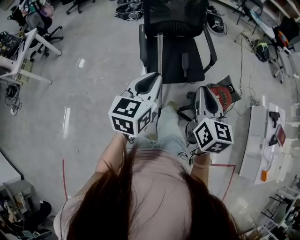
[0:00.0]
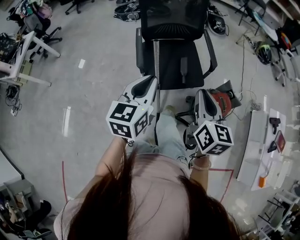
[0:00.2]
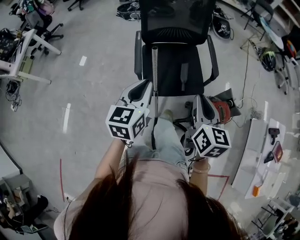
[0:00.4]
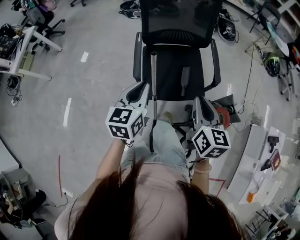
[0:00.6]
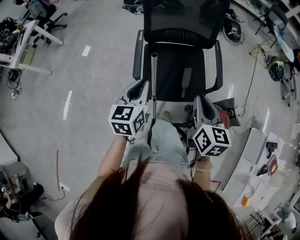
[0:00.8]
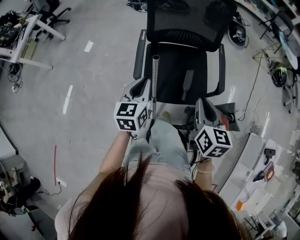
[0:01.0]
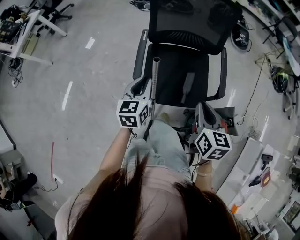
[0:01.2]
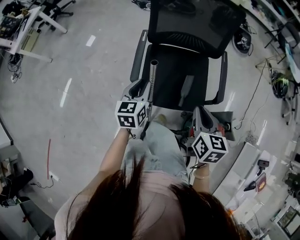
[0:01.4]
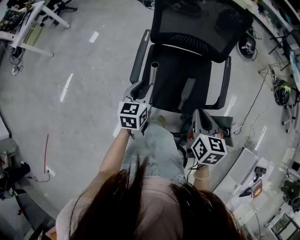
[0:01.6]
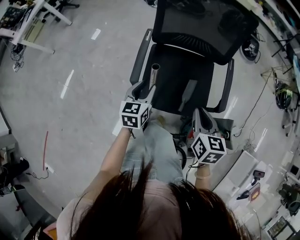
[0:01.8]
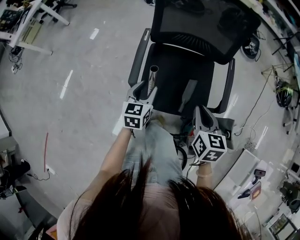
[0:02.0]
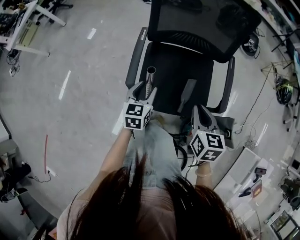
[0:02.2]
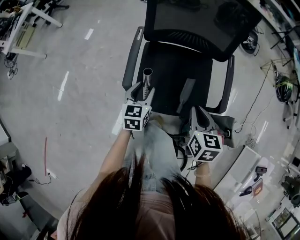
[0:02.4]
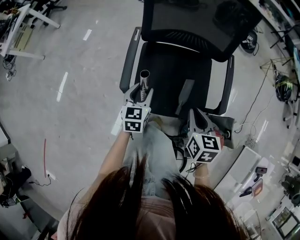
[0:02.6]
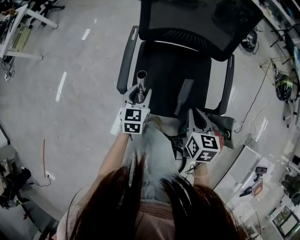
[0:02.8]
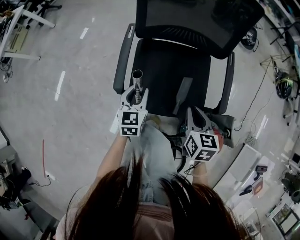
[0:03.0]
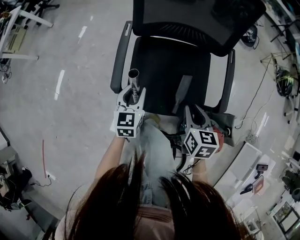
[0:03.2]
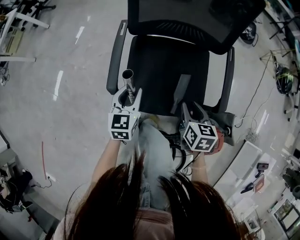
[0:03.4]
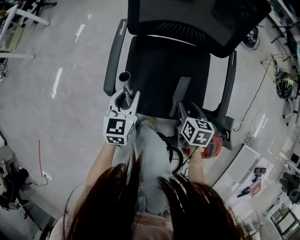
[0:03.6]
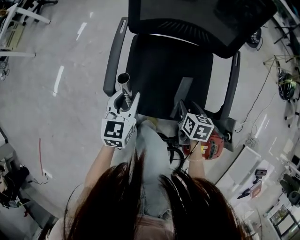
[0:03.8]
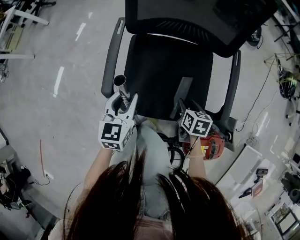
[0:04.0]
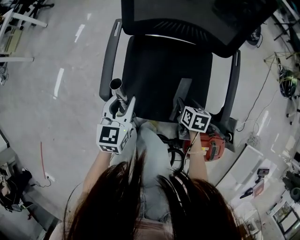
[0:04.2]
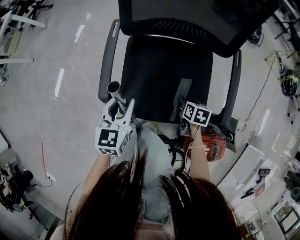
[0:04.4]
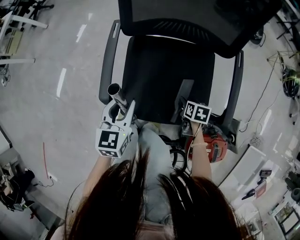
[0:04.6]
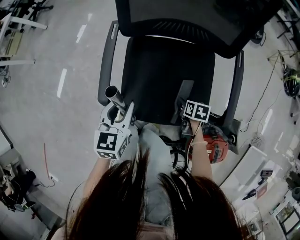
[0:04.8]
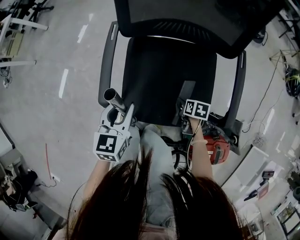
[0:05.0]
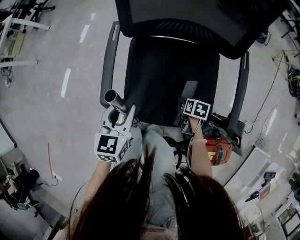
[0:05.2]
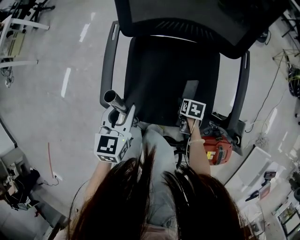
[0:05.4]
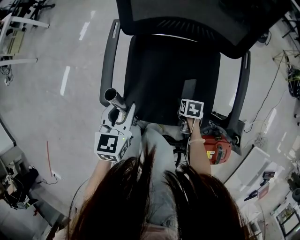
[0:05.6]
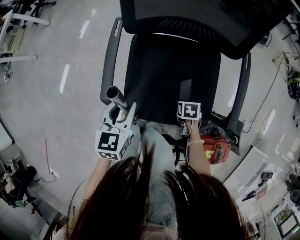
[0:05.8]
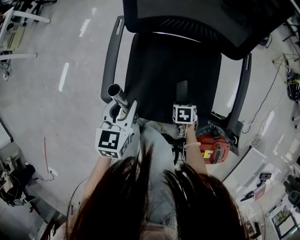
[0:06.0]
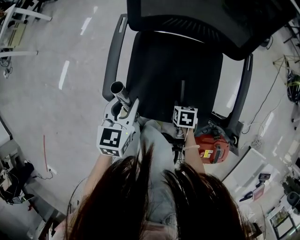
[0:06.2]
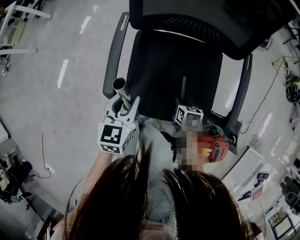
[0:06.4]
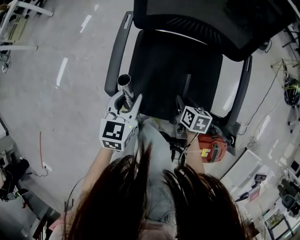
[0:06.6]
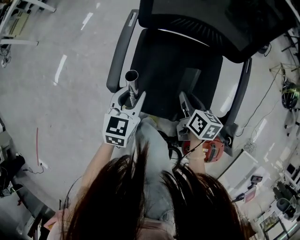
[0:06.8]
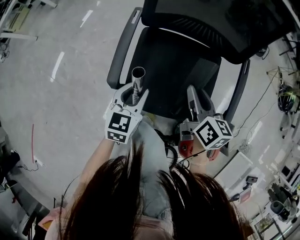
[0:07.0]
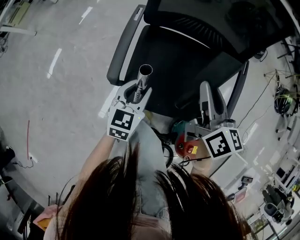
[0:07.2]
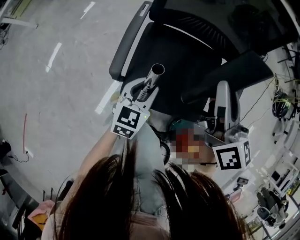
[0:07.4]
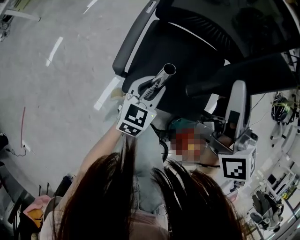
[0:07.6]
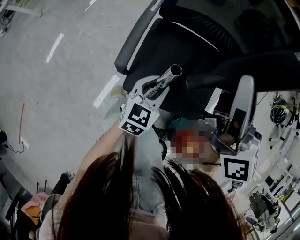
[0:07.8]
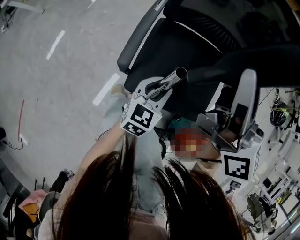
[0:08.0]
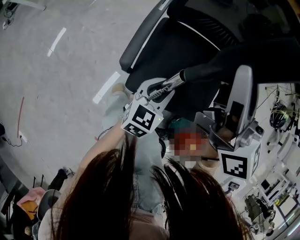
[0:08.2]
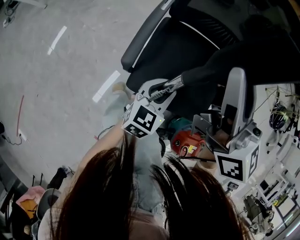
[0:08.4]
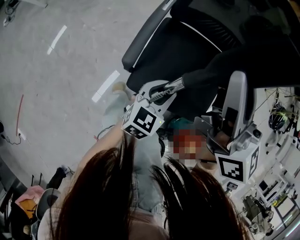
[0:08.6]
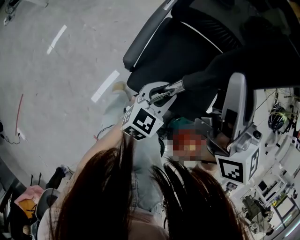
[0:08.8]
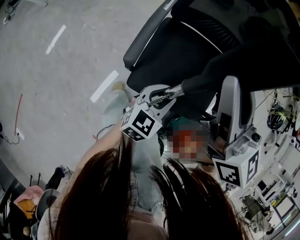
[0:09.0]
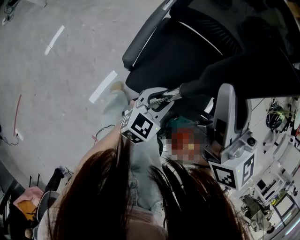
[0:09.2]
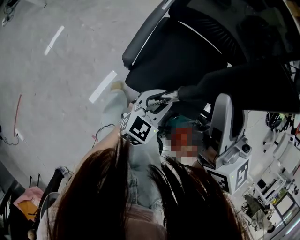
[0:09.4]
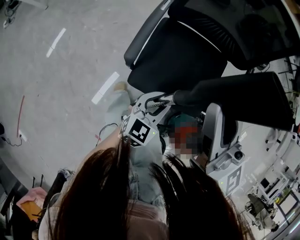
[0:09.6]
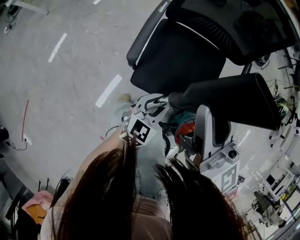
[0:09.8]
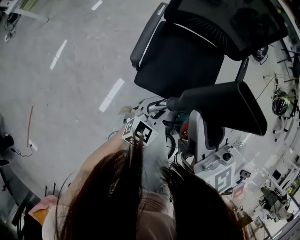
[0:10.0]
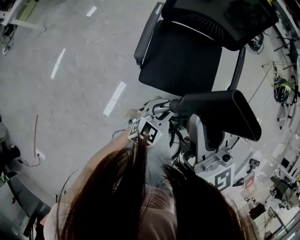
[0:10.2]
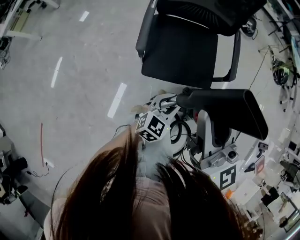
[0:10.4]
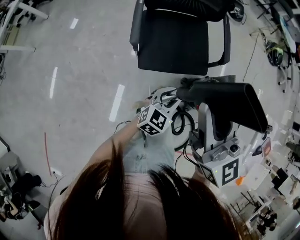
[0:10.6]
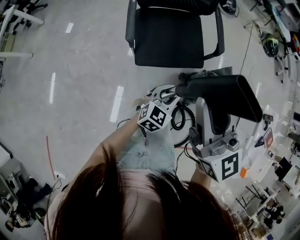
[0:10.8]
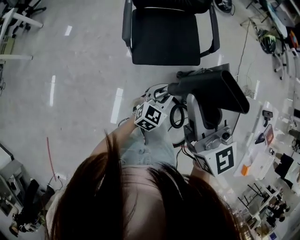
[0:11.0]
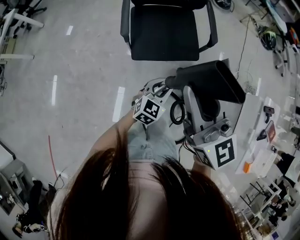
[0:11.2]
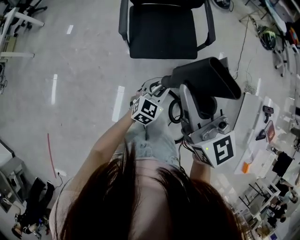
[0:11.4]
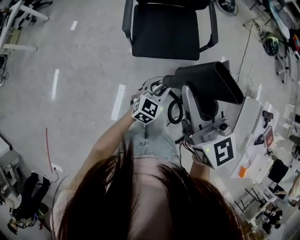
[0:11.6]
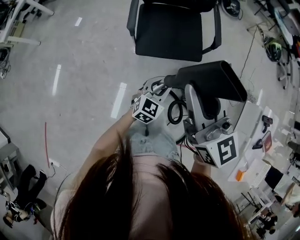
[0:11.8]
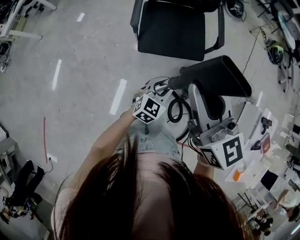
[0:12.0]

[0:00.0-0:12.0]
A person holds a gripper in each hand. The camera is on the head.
0:00.0 to 0:01.6: The grippers both shift forward and downward by approximately 40 cm. The right gripper changes its angle by some 30 degrees; the left gripper changes its angle by approximately 30 degrees, and opens up.
0:01.6 to 0:03.0: Both grippers move downward and forward, about 15 cm.
0:03.0 to 0:04.4: The right gripper is displaced downward by some 25 cm, turns by approximately 20 degrees, and opens its fingers.
0:04.4 to 0:06.0: The right gripper goes about 10 cm downward, and rotates approximately 20 degrees.
0:06.0 to 0:07.6: The left gripper shifts by approximately 5 cm; the right gripper heads upward, covering approximately 50 cm, tips its fingers upward by some 80 degrees, and closes.
0:07.6 to 0:09.0: The right gripper is displaced to the left by approximately 10 cm.
0:09.0 to 0:10.4: Both grippers travel together backward and upward, roughly 25 cm.
0:10.4 to 0:12.0: The left gripper travels backward by roughly 15 cm; the right gripper travels backward and to the right by roughly 20 cm.

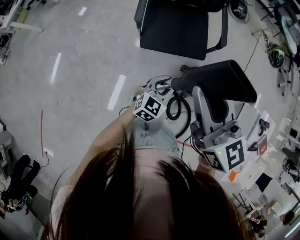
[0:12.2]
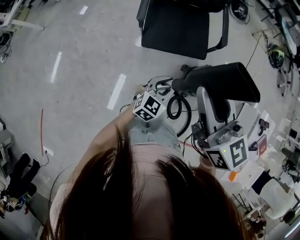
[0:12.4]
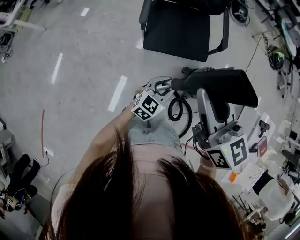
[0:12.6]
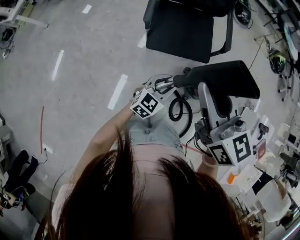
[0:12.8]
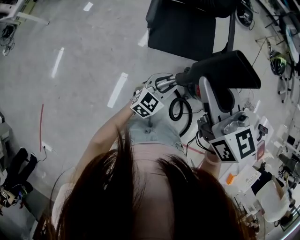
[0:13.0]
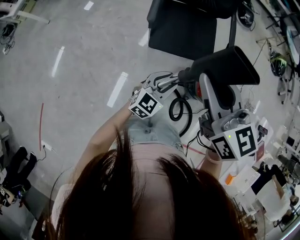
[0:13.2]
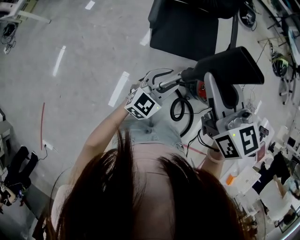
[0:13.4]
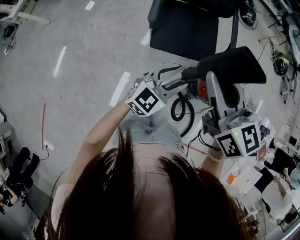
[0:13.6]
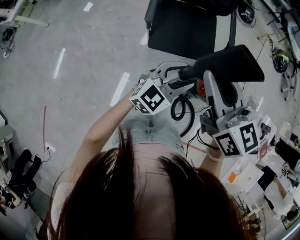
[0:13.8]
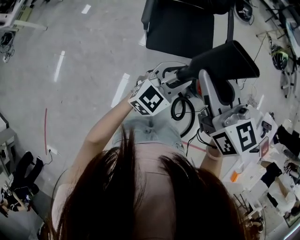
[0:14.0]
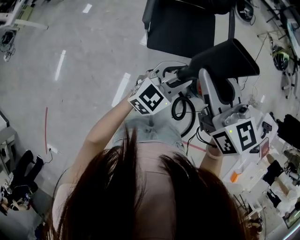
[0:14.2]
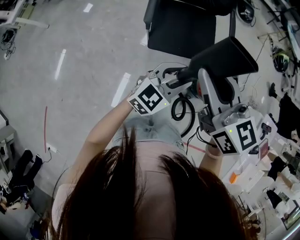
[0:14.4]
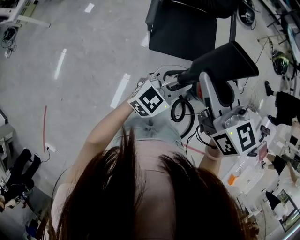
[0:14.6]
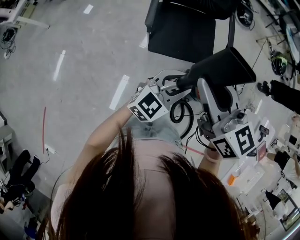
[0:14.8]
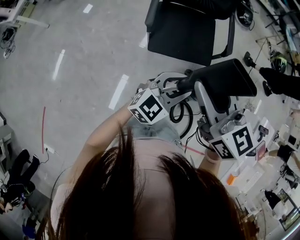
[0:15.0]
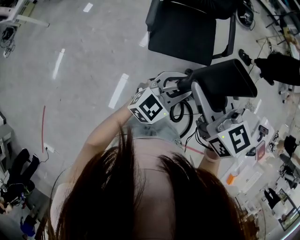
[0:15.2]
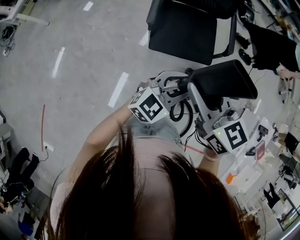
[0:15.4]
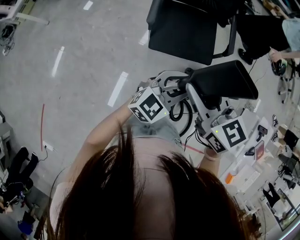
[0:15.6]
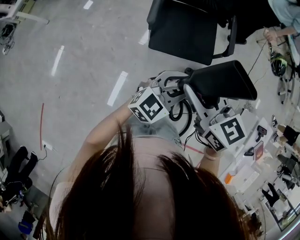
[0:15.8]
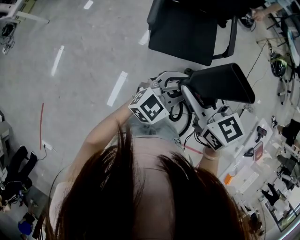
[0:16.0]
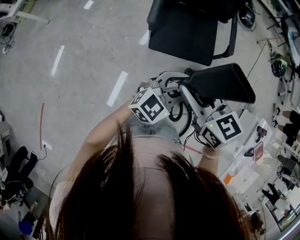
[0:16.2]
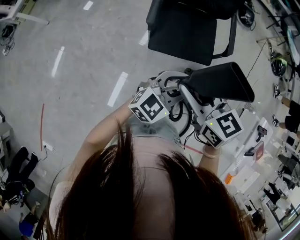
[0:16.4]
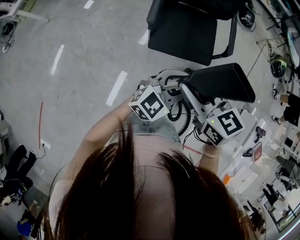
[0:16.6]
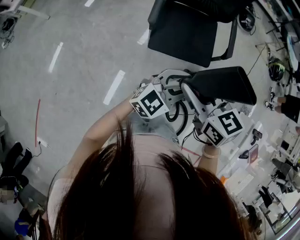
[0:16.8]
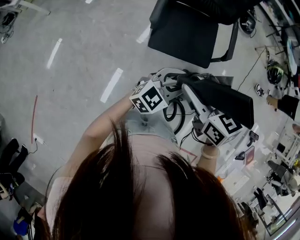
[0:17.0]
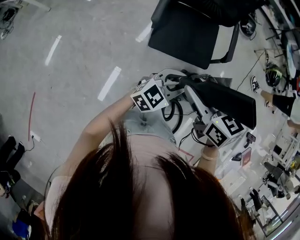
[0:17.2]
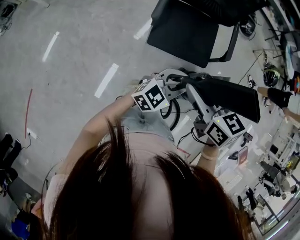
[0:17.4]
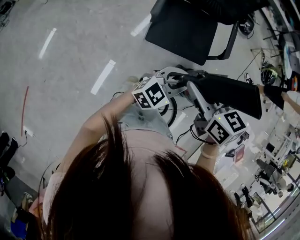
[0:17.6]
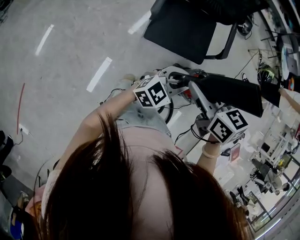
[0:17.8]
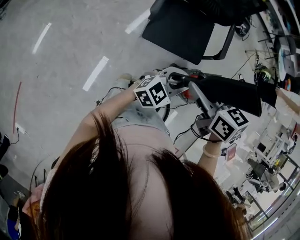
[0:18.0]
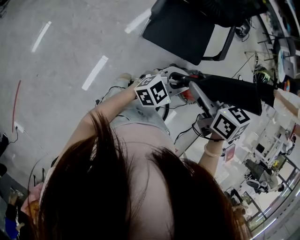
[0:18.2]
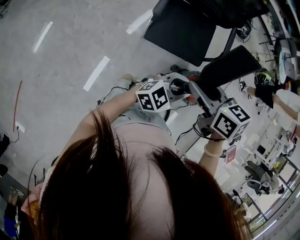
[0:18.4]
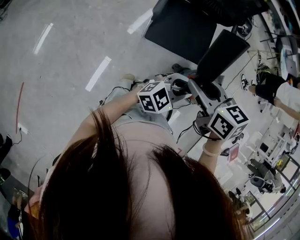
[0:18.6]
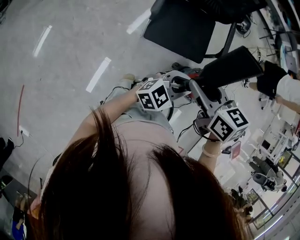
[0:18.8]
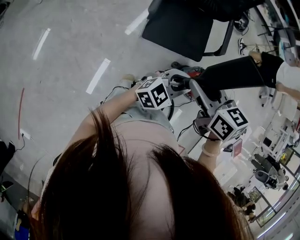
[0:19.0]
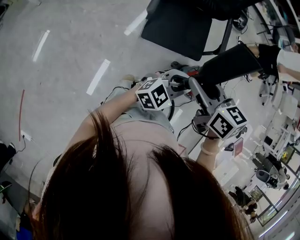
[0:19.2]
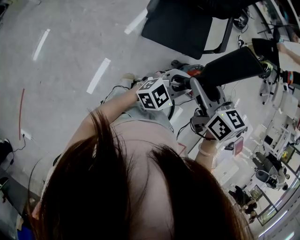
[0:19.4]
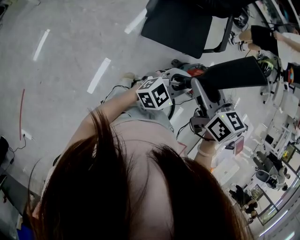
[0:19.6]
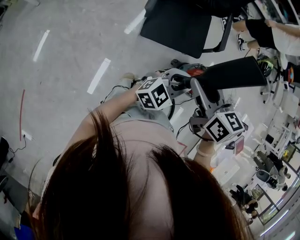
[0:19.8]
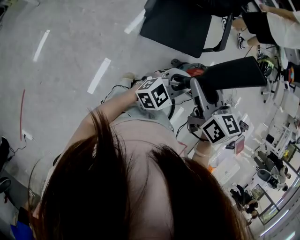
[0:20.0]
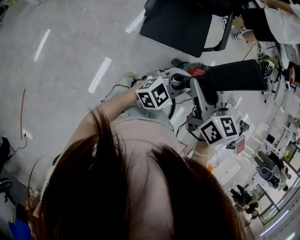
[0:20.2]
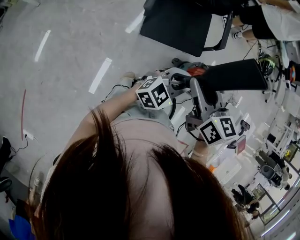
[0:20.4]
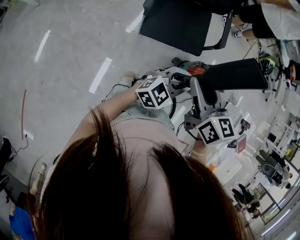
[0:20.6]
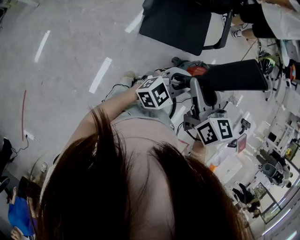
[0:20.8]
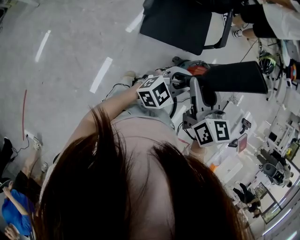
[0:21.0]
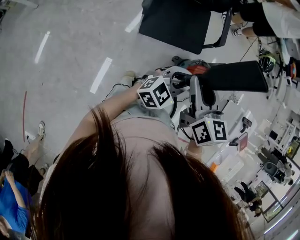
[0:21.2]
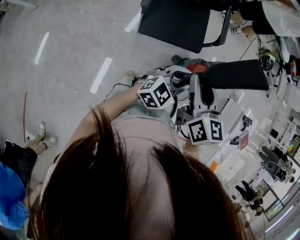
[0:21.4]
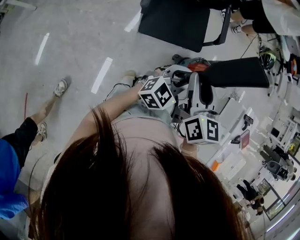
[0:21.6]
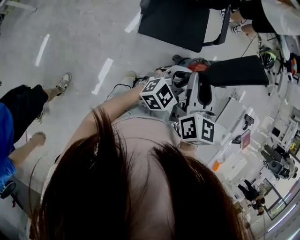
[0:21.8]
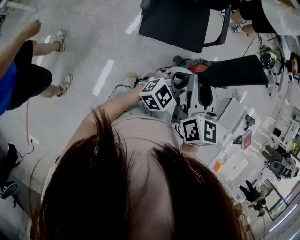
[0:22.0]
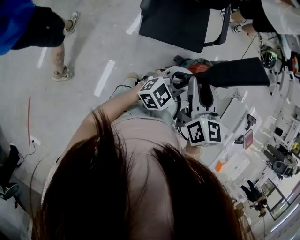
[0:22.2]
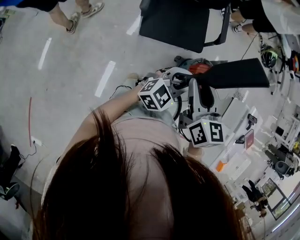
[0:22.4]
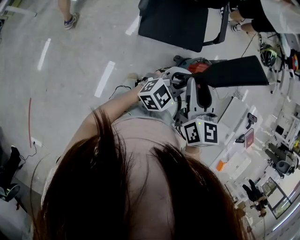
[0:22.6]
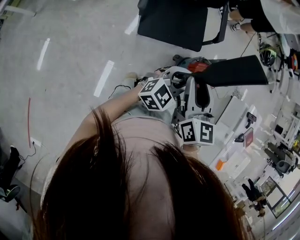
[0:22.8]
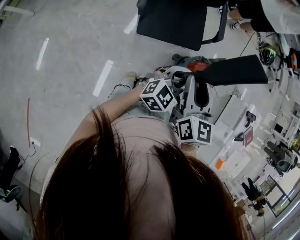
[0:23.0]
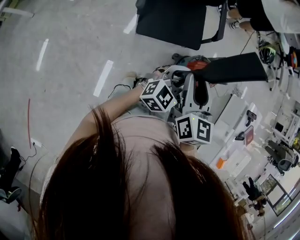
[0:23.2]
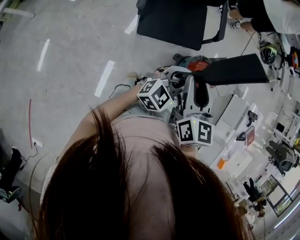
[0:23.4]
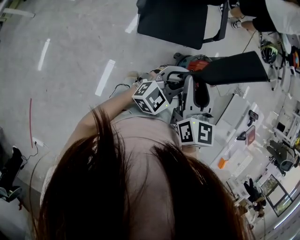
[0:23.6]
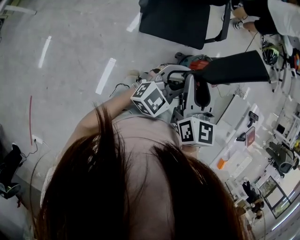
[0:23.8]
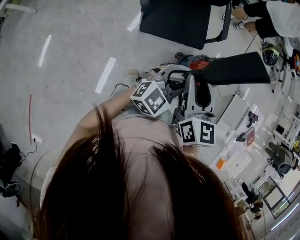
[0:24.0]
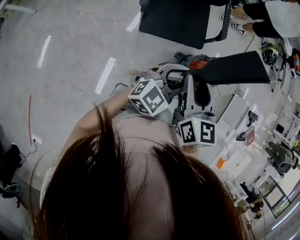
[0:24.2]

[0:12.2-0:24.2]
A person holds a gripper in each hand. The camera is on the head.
0:12.2 to 0:13.8: The right gripper moves about 5 cm. The left gripper travels upward by about 10 cm, and opens its fingers.
0:13.8 to 0:15.2: The grippers stay close to where they were, moving slightly.
0:15.2 to 0:16.6: The right gripper is displaced downward by about 5 cm.
0:16.6 to 0:18.2: There are only small adjustments of the grippers.
0:18.2 to 0:19.8: The grippers move only a little.
0:19.8 to 0:21.2: The right gripper rotates roughly 20 degrees.
0:21.2 to 0:22.6: The grippers stay close to where they were, moving slightly.
0:22.6 to 0:24.2: The left gripper changes place by roughly 5 cm.
